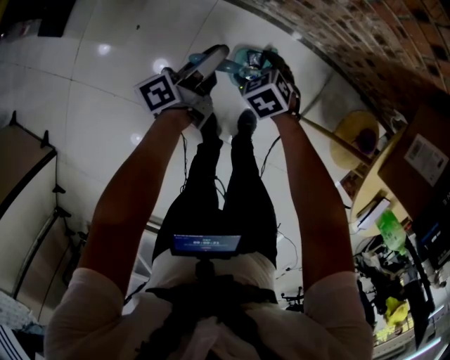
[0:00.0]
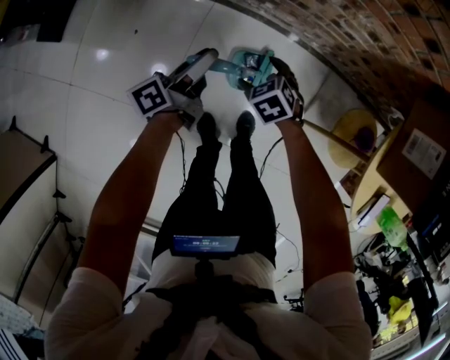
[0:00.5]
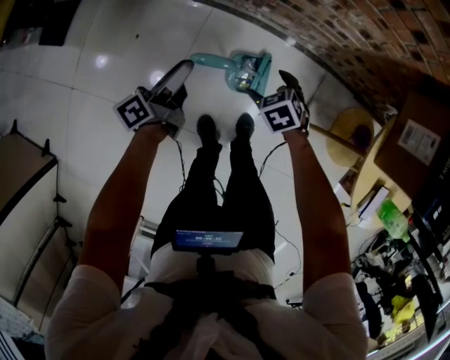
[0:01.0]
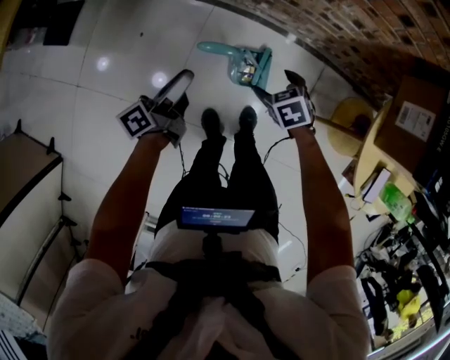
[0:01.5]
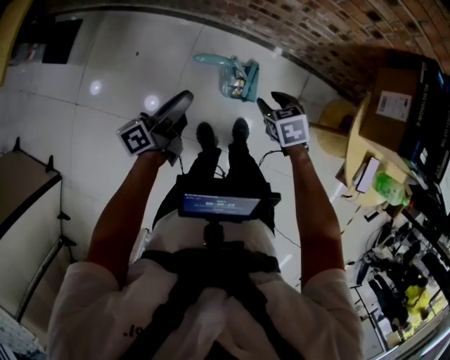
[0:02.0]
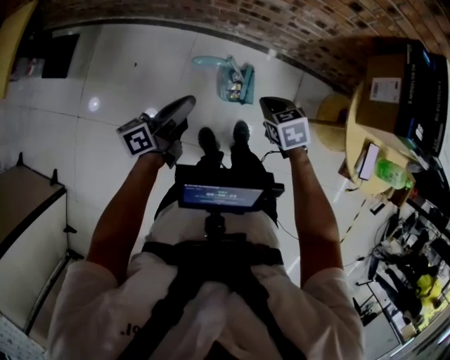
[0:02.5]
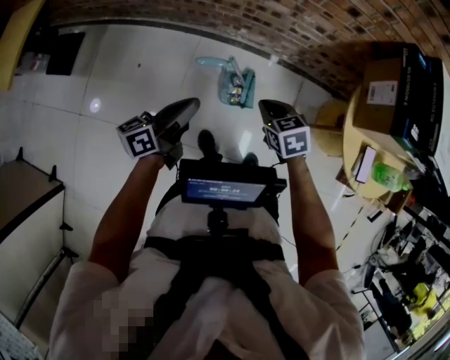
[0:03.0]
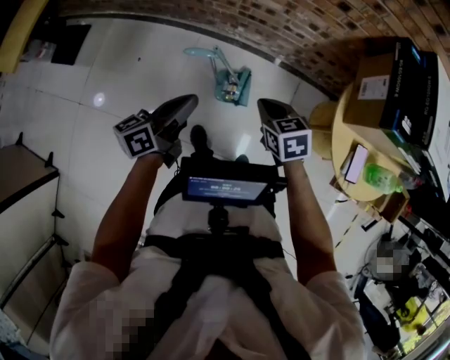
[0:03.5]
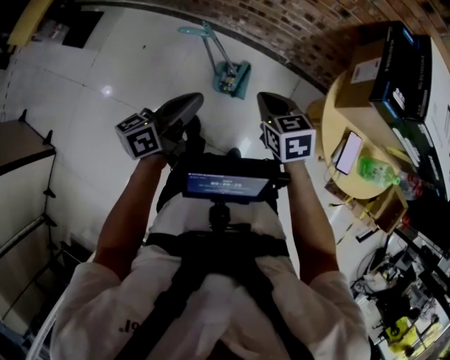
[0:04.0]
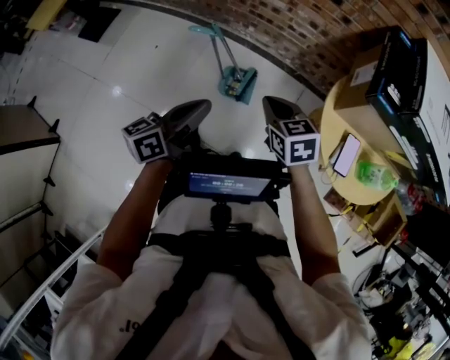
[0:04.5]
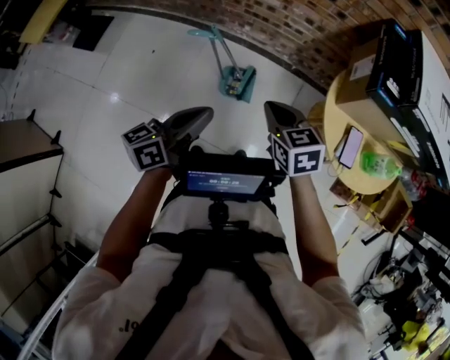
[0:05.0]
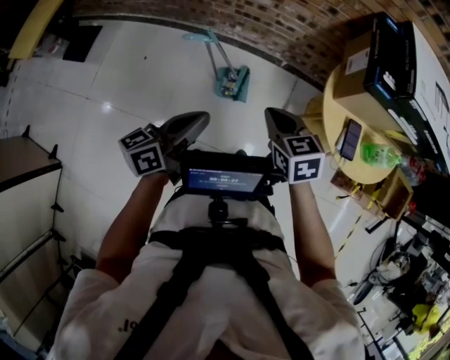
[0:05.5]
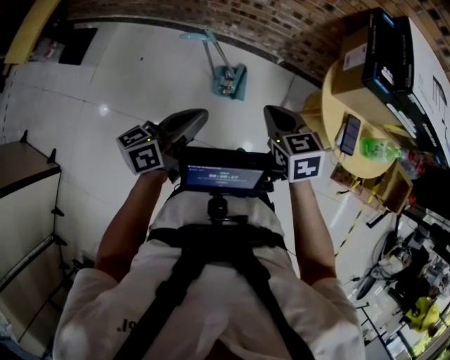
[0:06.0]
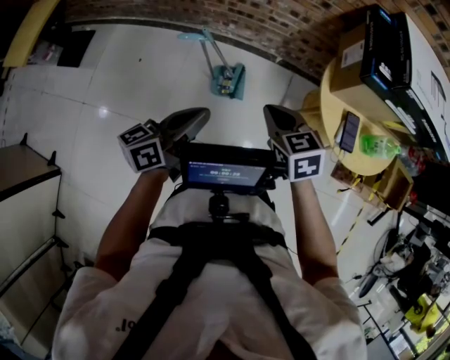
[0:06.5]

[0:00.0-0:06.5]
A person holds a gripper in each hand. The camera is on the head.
0:00.0 to 0:02.0: The left gripper goes about 20 cm backward and upward; the right gripper heads upward, backward and to the right, covering roughly 20 cm, rotates approximately 20 degrees, and closes.
0:02.0 to 0:04.5: The left gripper goes about 30 cm to the right, backward and upward, changes its angle by approximately 20 degrees, and closes its fingers; the right gripper travels backward, upward and to the right by approximately 25 cm, rotates some 20 degrees, and closes.
0:04.5 to 0:06.5: The right gripper ends up approximately 5 cm from where it was.

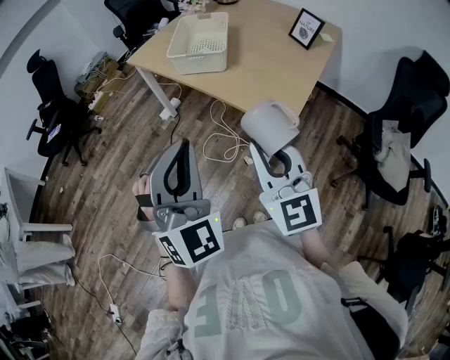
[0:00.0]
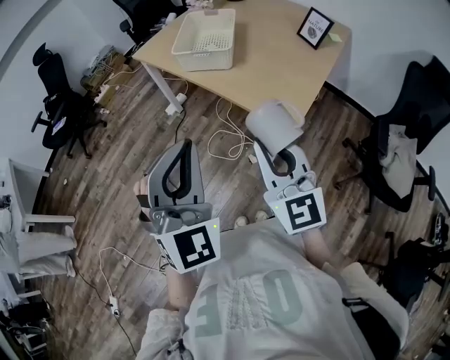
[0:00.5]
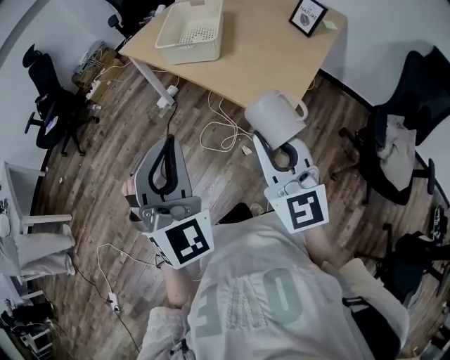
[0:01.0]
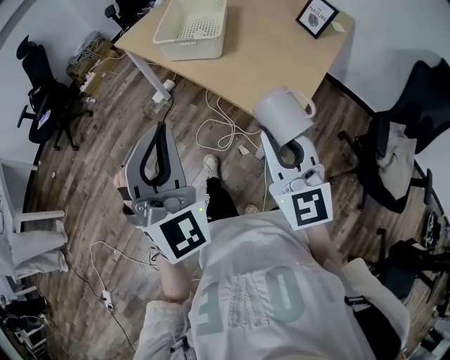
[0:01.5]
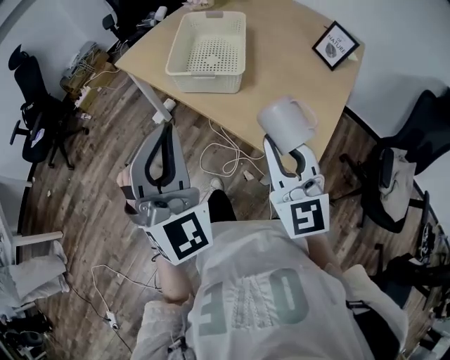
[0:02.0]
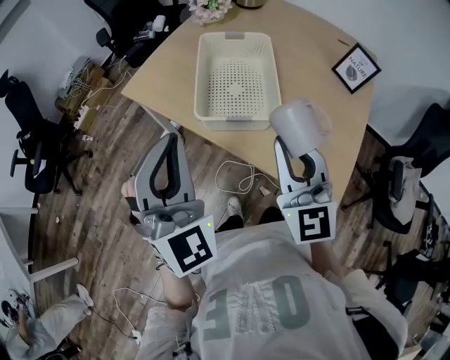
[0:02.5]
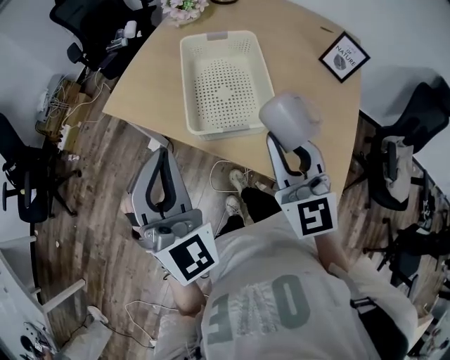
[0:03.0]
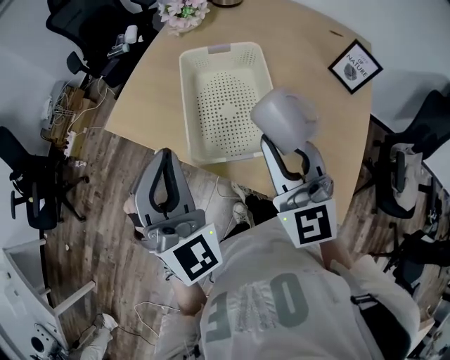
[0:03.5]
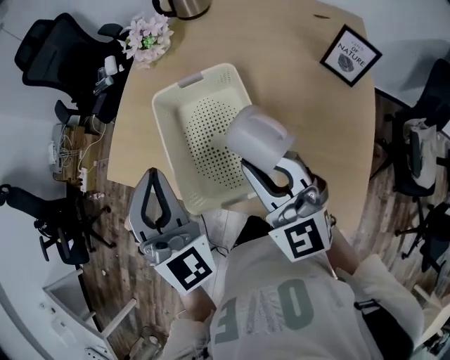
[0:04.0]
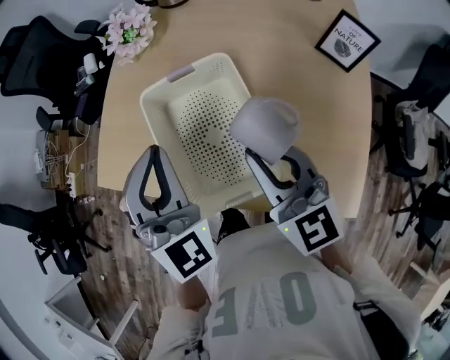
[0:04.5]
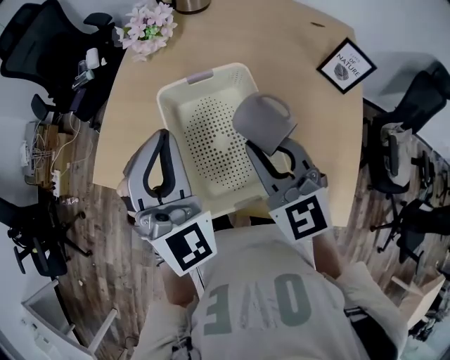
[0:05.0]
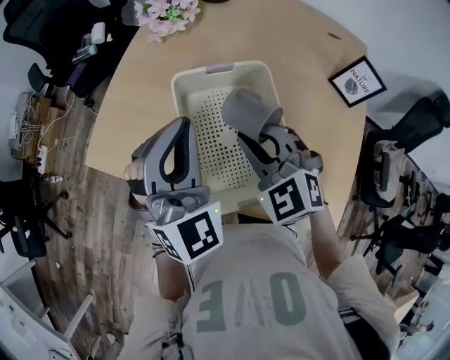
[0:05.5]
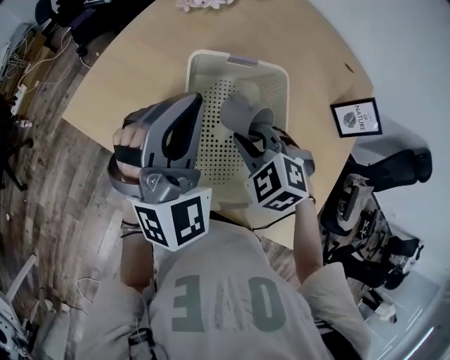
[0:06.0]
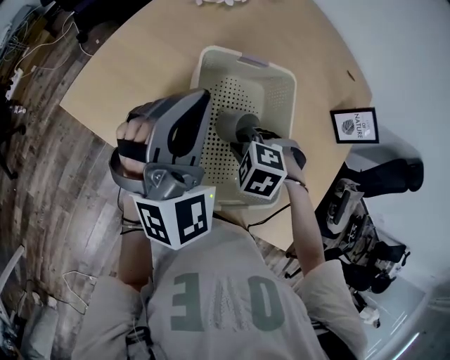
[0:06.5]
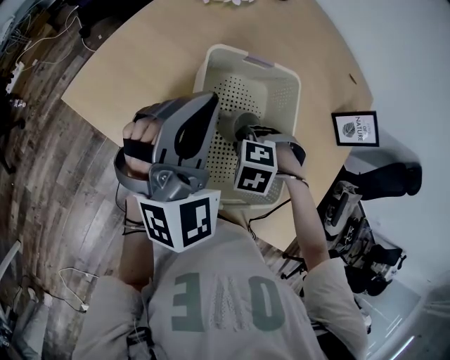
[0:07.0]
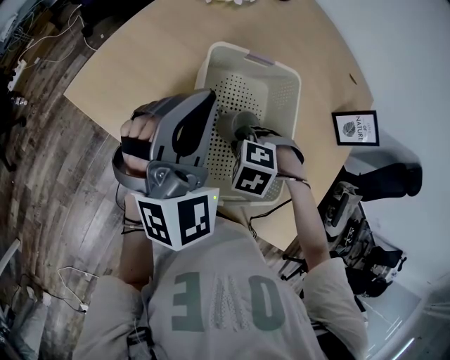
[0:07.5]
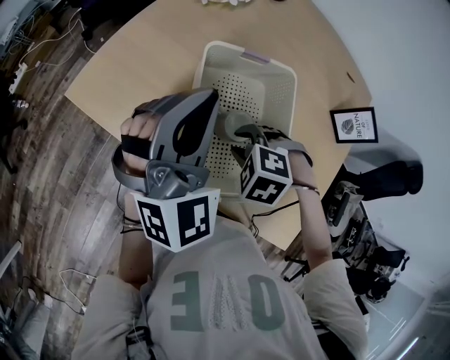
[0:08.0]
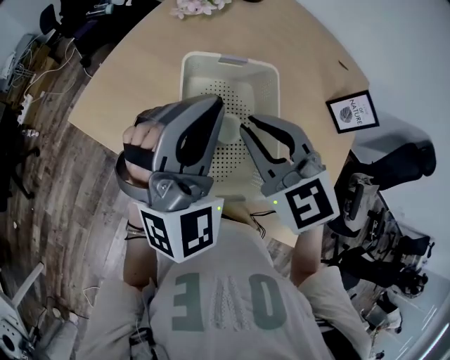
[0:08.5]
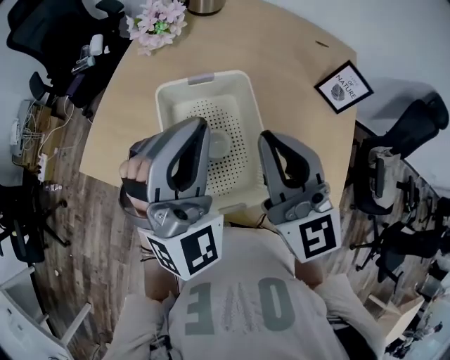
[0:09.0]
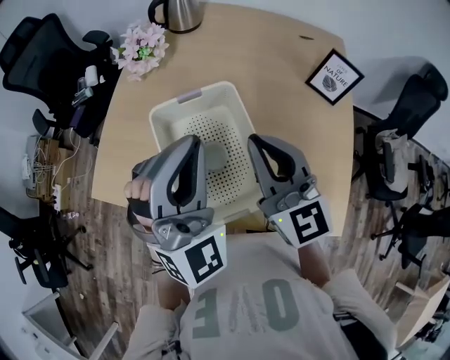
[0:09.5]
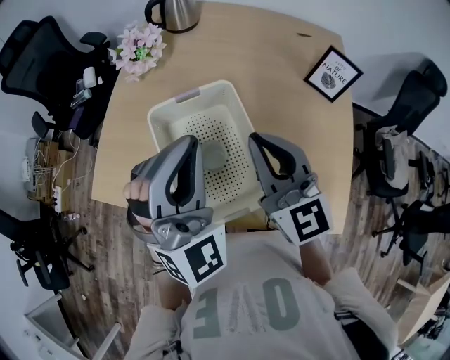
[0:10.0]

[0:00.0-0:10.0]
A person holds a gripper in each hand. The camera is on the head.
0:00.0 to 0:02.0: The grippers both shift forward by about 25 cm.
0:02.0 to 0:04.0: The two grippers go about 35 cm forward.
0:04.0 to 0:06.0: The right gripper heads downward, forward and to the left, covering roughly 20 cm, and tips its fingers downward by about 50 degrees. The left gripper shifts about 10 cm forward and downward.
0:06.0 to 0:08.0: The right gripper rotates about 20 degrees, and opens its fingers.
0:08.0 to 0:10.0: The left gripper shifts by some 15 cm, and turns by about 20 degrees. The right gripper moves upward, roughly 25 cm, points its fingers about 80 degrees further upward, and closes up.

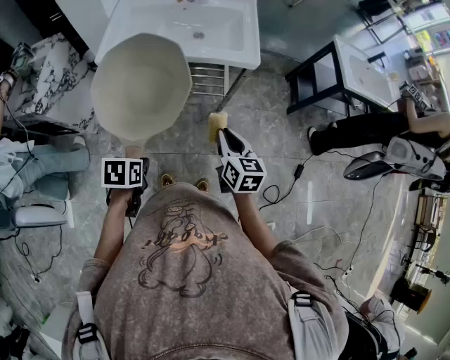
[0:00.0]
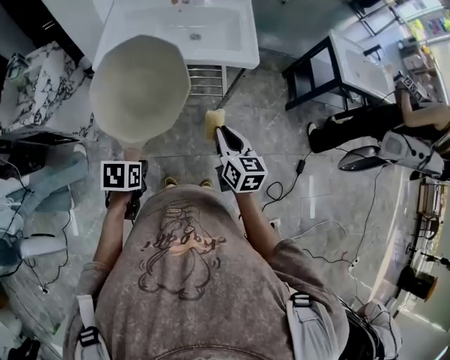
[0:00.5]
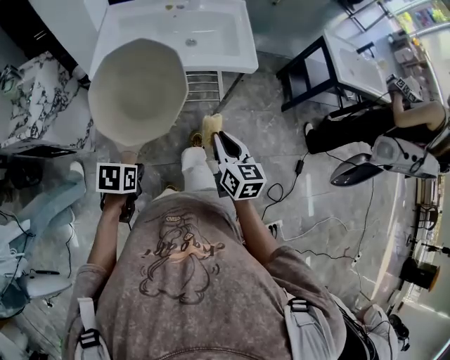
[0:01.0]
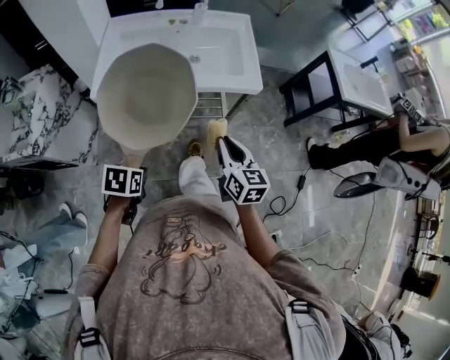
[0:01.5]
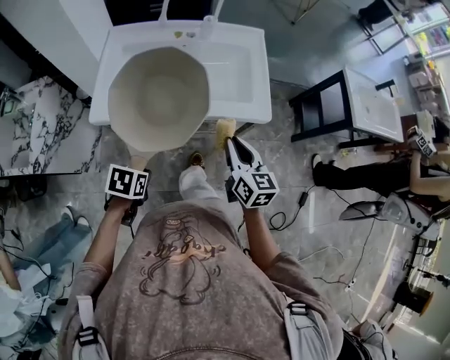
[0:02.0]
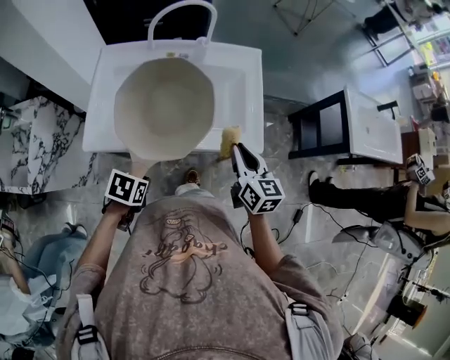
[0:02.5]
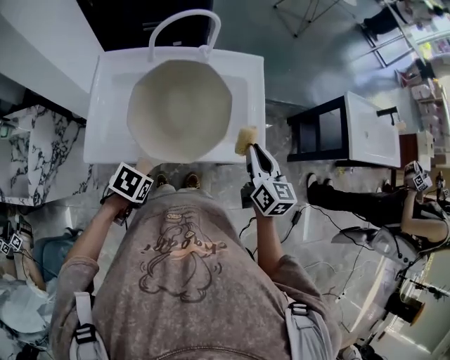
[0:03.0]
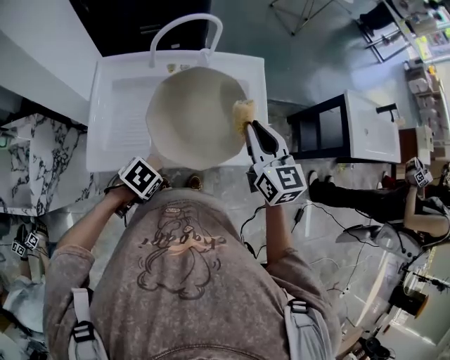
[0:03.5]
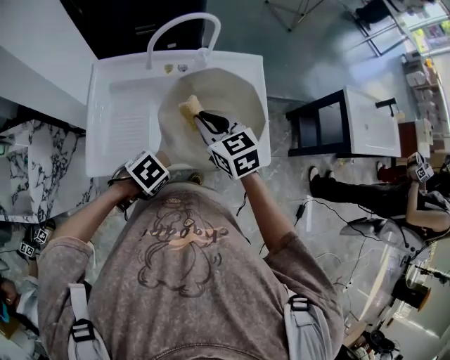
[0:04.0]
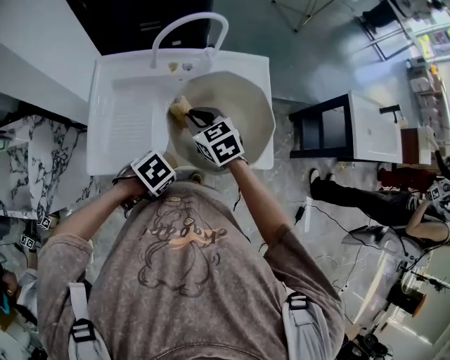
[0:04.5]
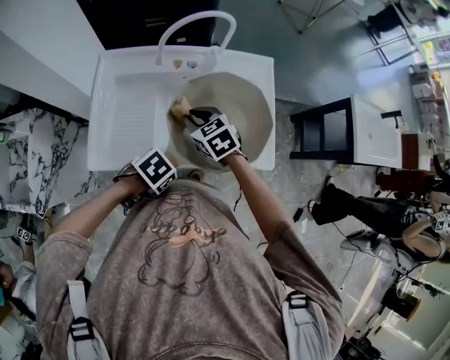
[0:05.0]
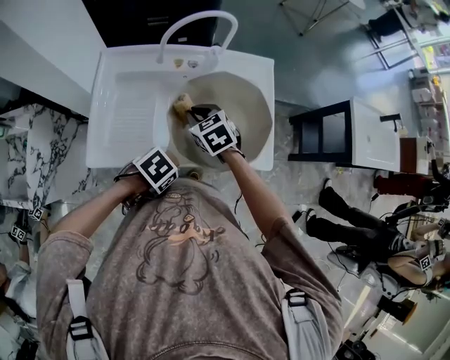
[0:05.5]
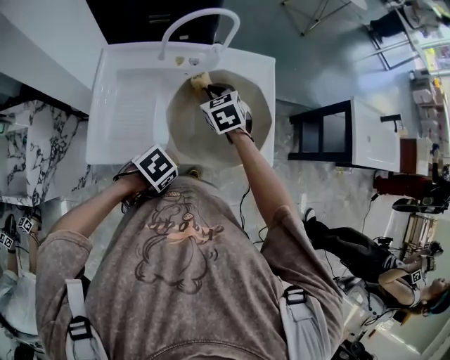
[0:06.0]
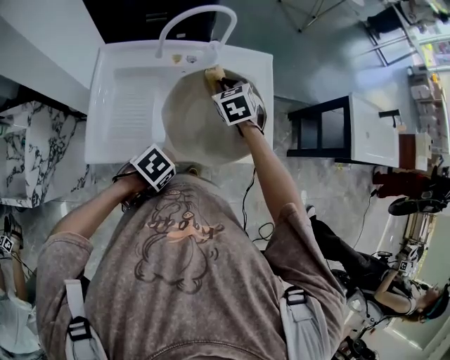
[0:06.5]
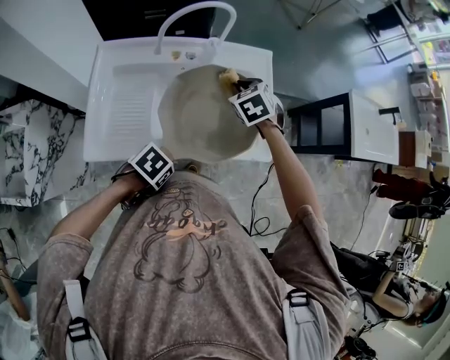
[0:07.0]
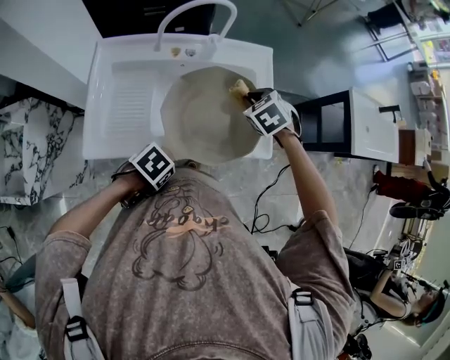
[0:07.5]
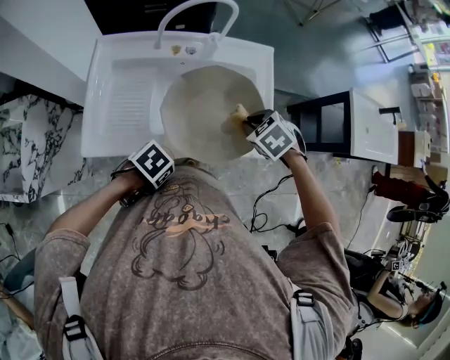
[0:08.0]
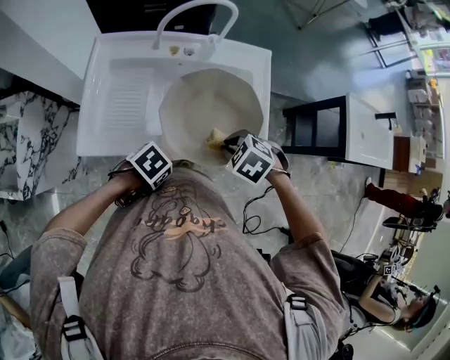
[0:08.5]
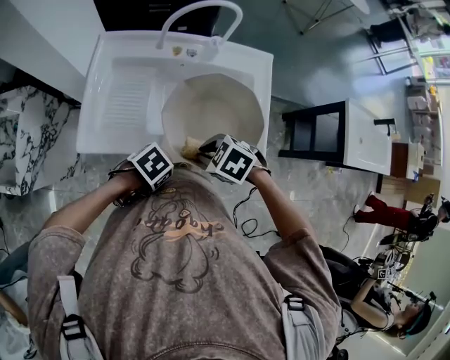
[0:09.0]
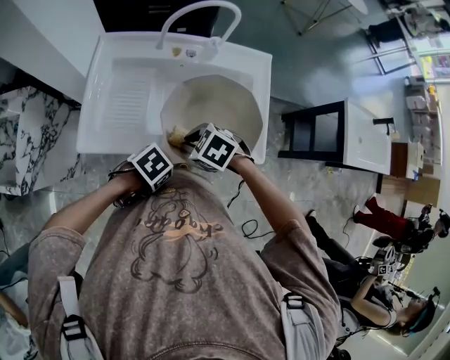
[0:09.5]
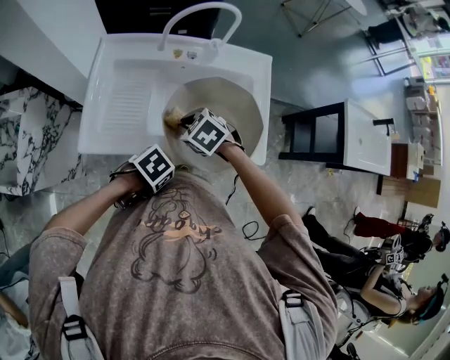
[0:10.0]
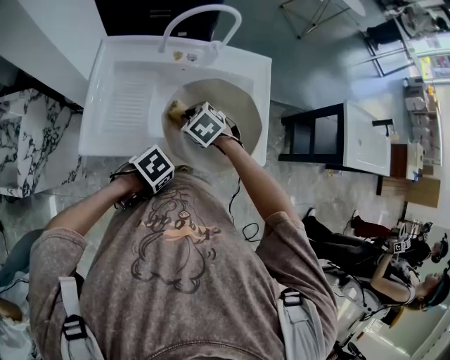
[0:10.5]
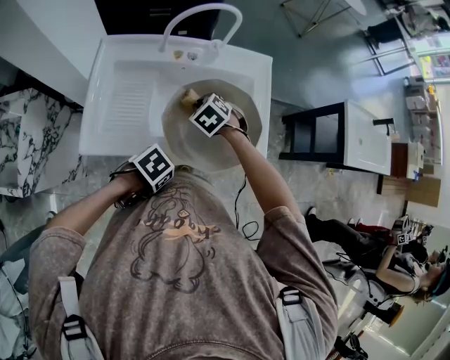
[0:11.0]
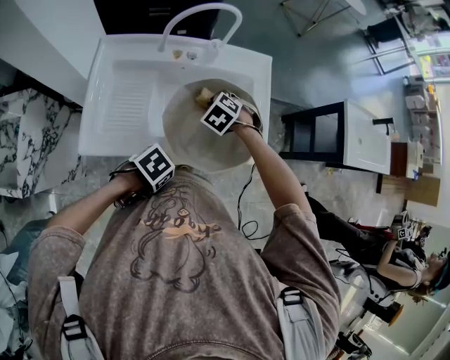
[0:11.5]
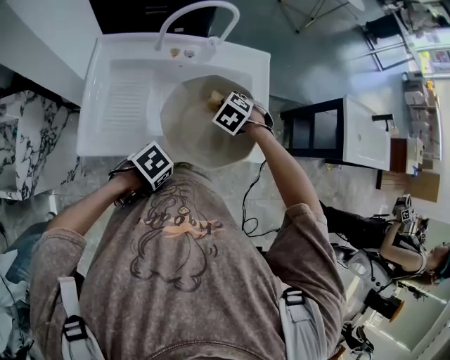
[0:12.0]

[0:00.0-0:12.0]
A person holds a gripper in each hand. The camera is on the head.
0:00.0 to 0:02.0: The right gripper moves roughly 20 cm.
0:02.0 to 0:04.0: The right gripper changes place by about 25 cm, and rotates about 30 degrees.
0:04.0 to 0:06.0: The right gripper shifts by approximately 10 cm.
0:06.0 to 0:08.0: The right gripper moves some 20 cm, and turns by roughly 30 degrees.
0:08.0 to 0:10.0: The right gripper shifts by some 20 cm.
0:10.0 to 0:12.0: The right gripper changes place by about 15 cm, and swivels roughly 20 degrees.
